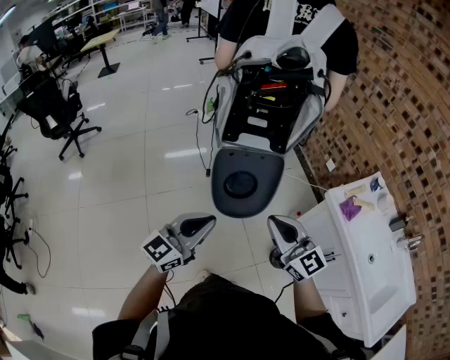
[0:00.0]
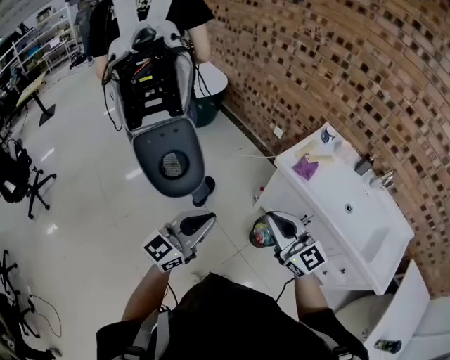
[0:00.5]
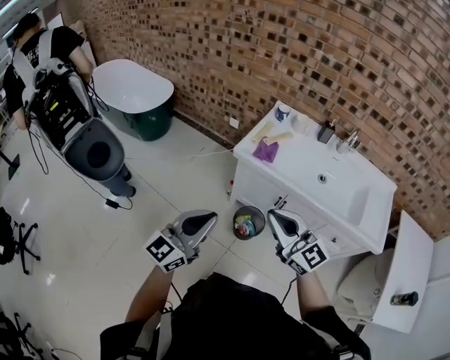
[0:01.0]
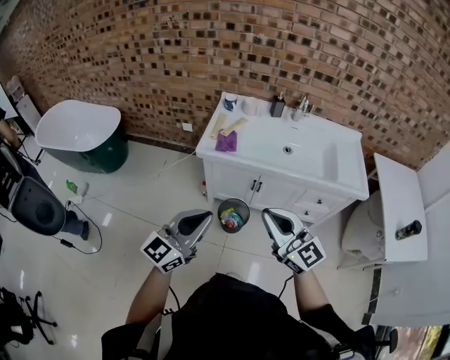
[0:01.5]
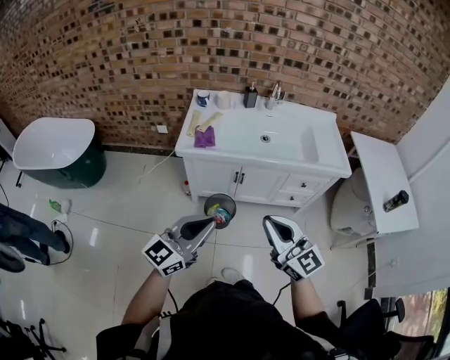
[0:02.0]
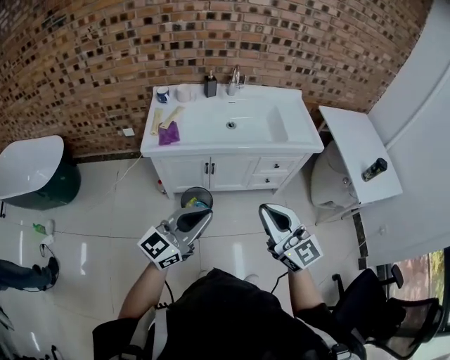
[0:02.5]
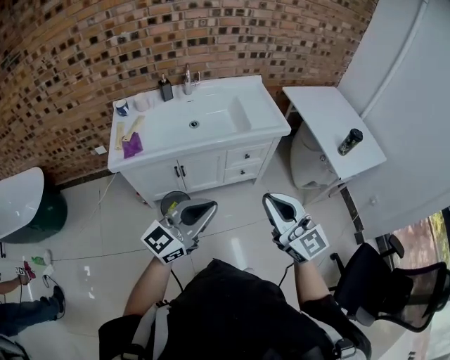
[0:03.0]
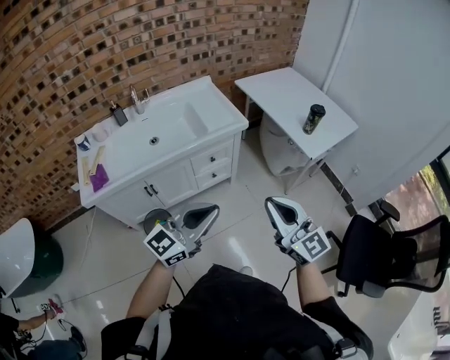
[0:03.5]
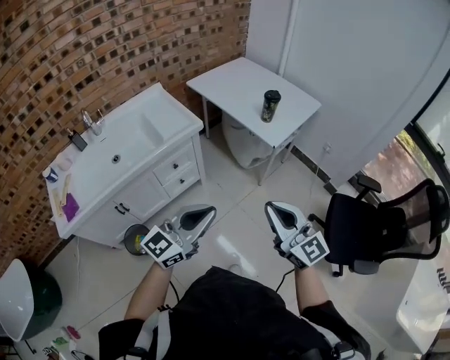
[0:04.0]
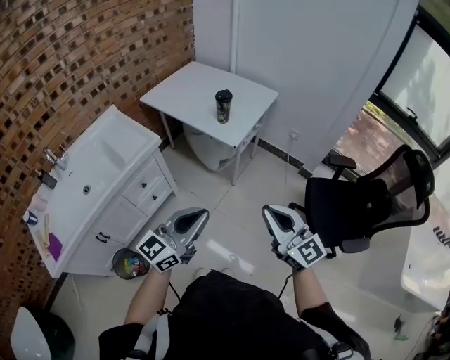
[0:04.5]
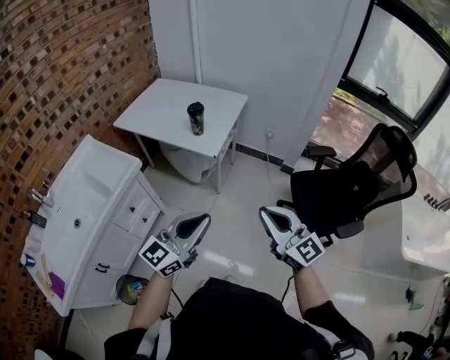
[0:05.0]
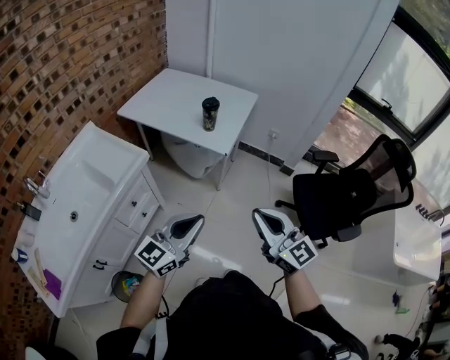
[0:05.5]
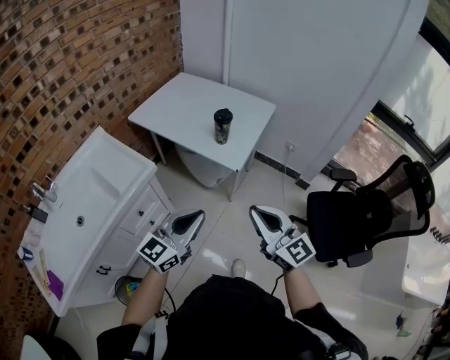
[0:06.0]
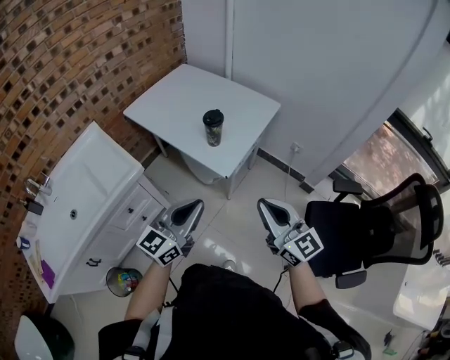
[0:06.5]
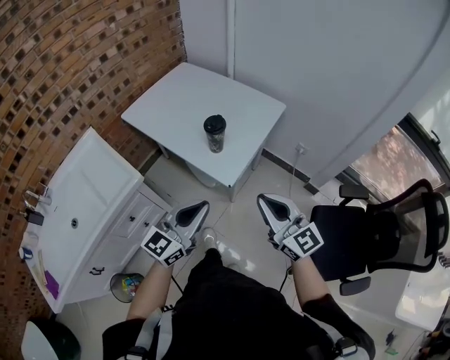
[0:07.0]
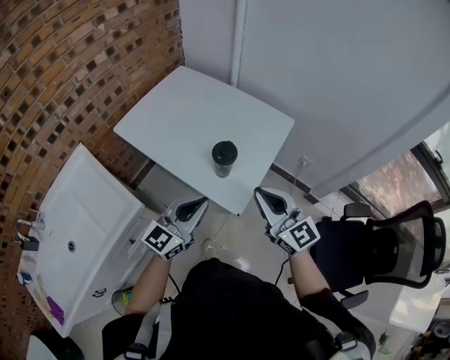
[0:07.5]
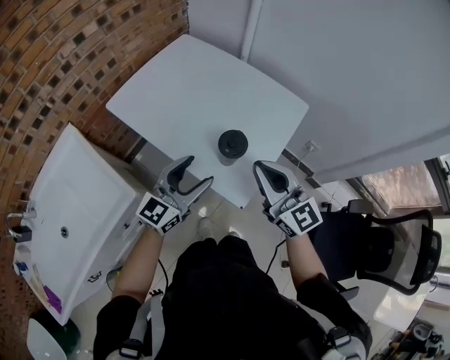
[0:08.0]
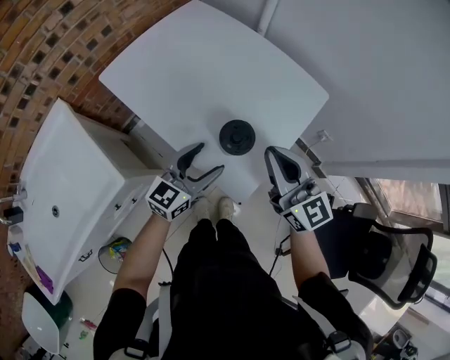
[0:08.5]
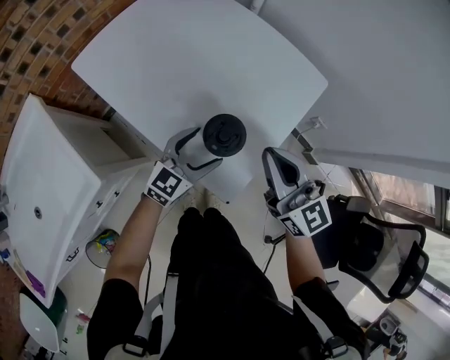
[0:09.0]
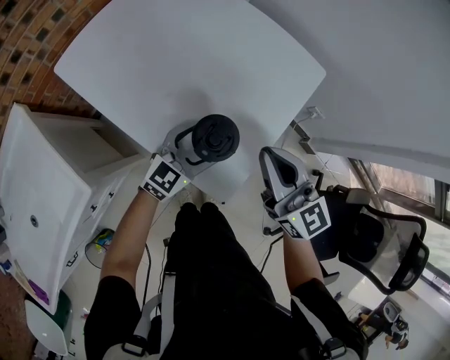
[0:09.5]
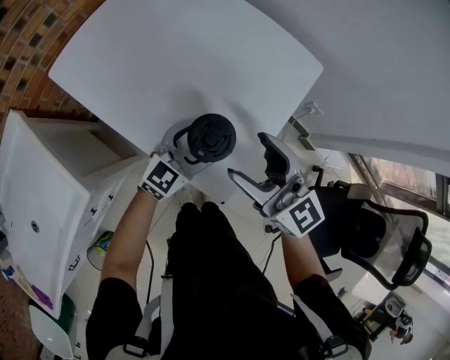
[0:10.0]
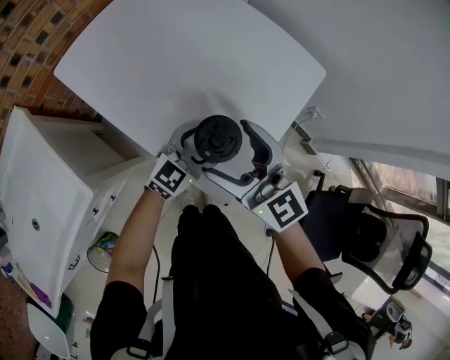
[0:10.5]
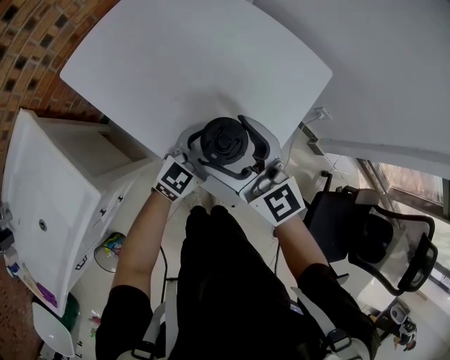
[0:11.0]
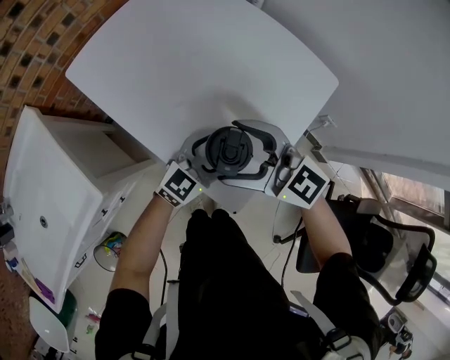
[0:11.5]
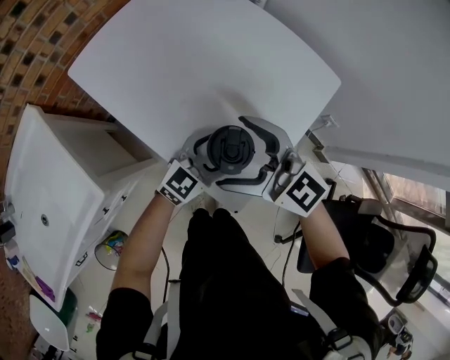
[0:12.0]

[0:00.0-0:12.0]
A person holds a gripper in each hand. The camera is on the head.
0:00.0 to 0:02.0: The right gripper shifts by about 30 cm, and changes its angle by about 60 degrees; the left gripper ends up roughly 30 cm from where it was, and rotates some 60 degrees.
0:02.0 to 0:04.0: The pair of grippers is taken some 40 cm. The left gripper turns by about 50 degrees, while the right gripper swivels approximately 50 degrees.
0:04.0 to 0:06.0: Both grippers travel together forward, approximately 15 cm.
0:06.0 to 0:08.0: The two grippers go about 40 cm forward. The left gripper opens up.
0:08.0 to 0:10.0: The left gripper shifts about 25 cm downward, to the right and forward; the right gripper moves downward and forward, some 10 cm, and opens its fingers.
0:10.0 to 0:12.0: The right gripper is displaced to the left by about 10 cm, and rotates some 30 degrees.

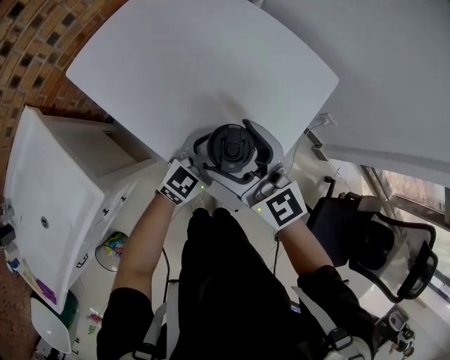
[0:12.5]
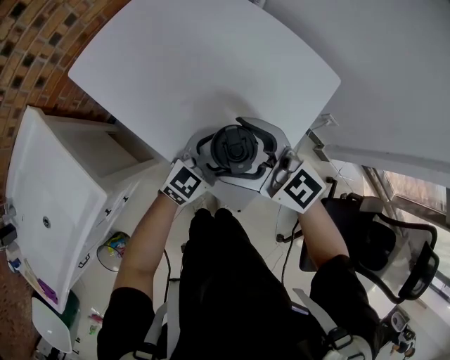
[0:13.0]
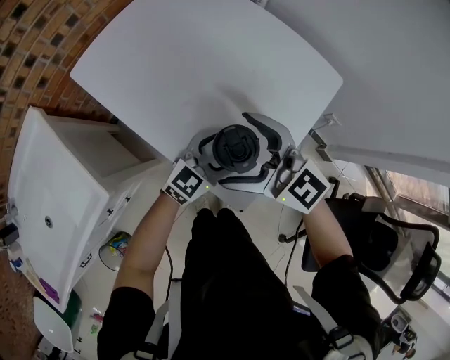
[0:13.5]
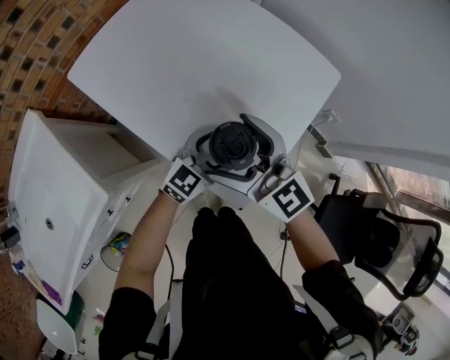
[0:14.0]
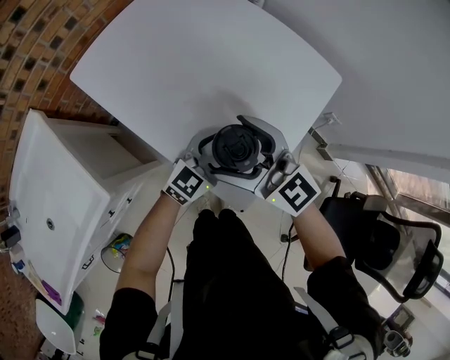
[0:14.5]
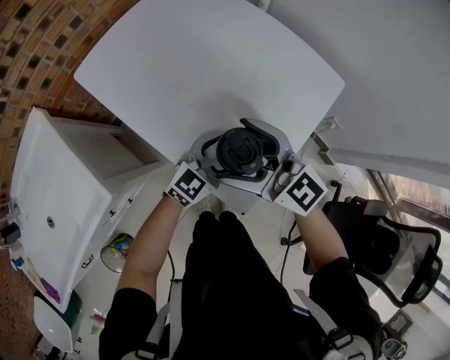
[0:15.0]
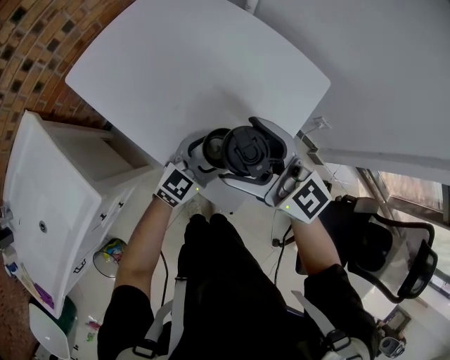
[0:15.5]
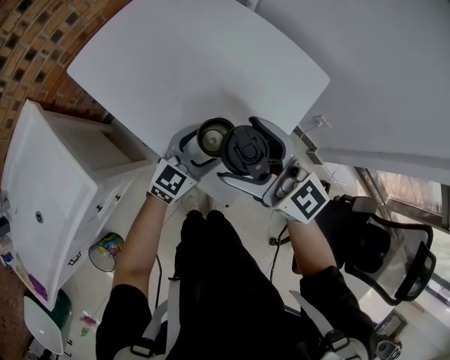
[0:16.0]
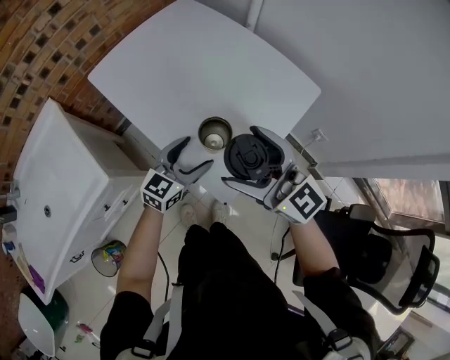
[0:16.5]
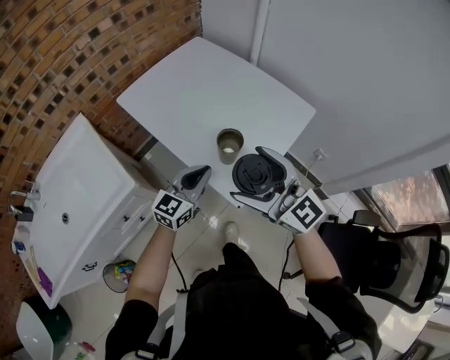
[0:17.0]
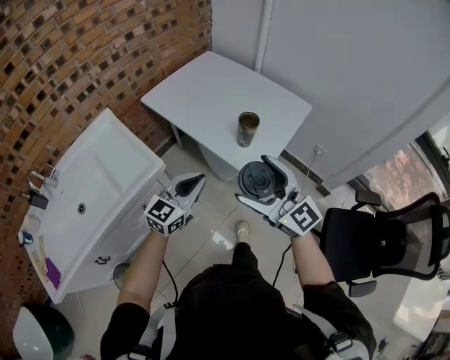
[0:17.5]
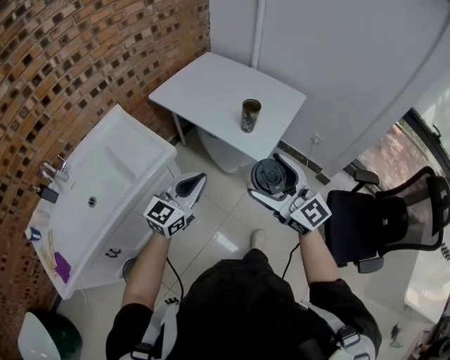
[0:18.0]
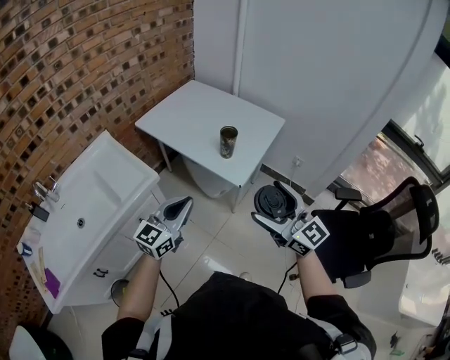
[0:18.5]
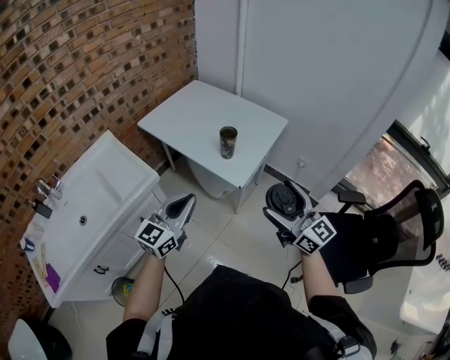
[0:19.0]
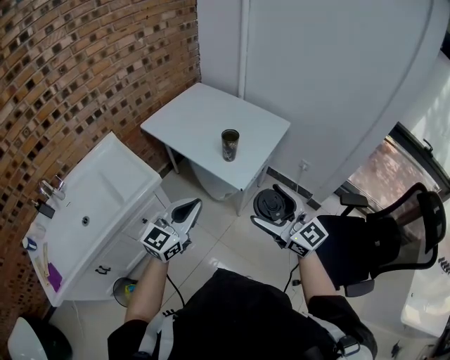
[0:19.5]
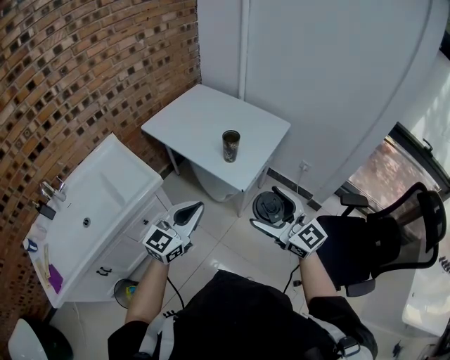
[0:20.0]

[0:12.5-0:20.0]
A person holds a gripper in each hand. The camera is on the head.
0:14.5 to 0:16.5: The left gripper moves to the left, roughly 5 cm, while the right gripper is displaced upward, backward and to the right by some 10 cm.
0:16.5 to 0:18.0: The left gripper is displaced backward, upward and to the left by about 40 cm, and closes, while the right gripper moves backward, roughly 30 cm.
0:18.0 to 0:20.0: The two grippers go some 10 cm to the right.

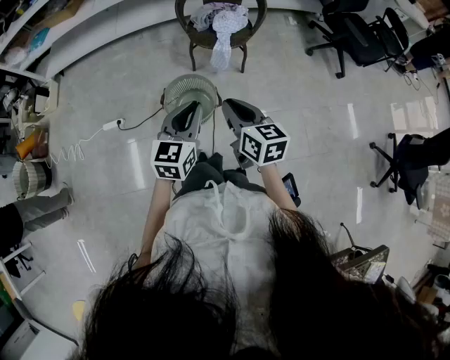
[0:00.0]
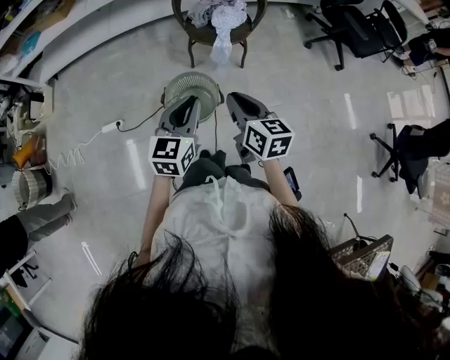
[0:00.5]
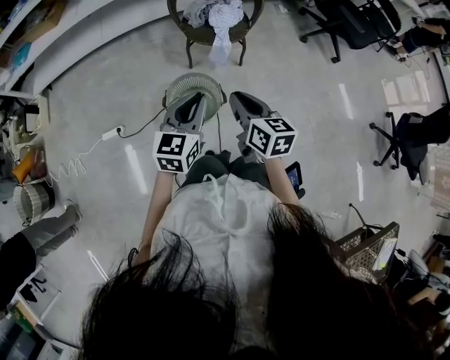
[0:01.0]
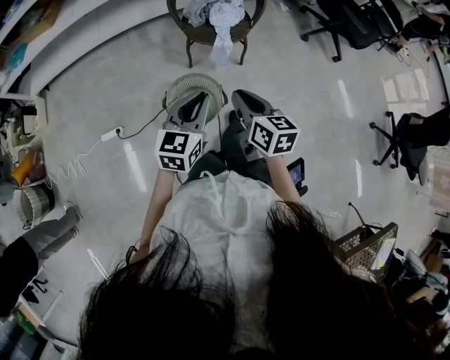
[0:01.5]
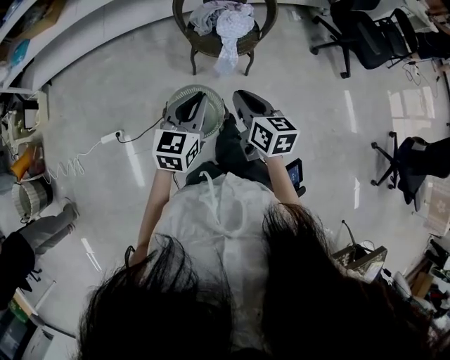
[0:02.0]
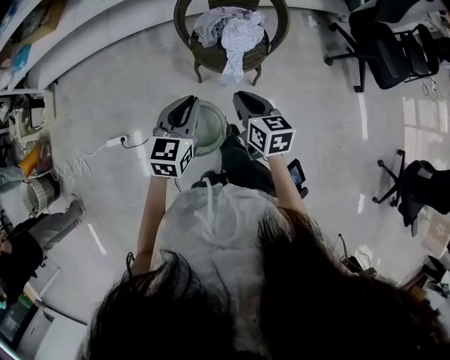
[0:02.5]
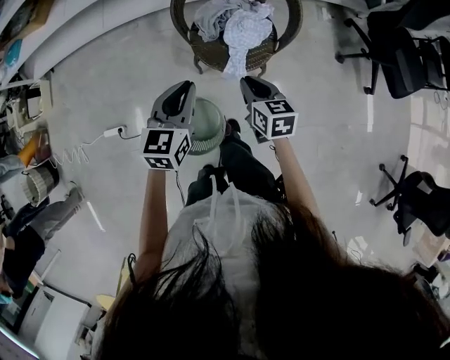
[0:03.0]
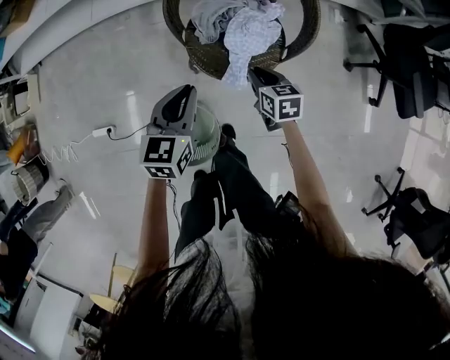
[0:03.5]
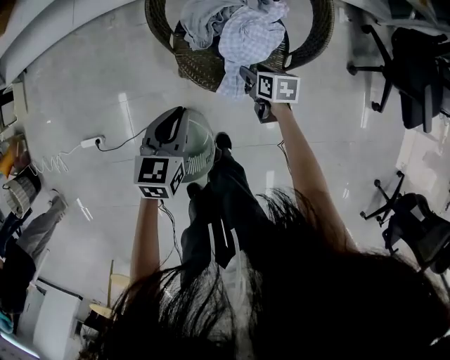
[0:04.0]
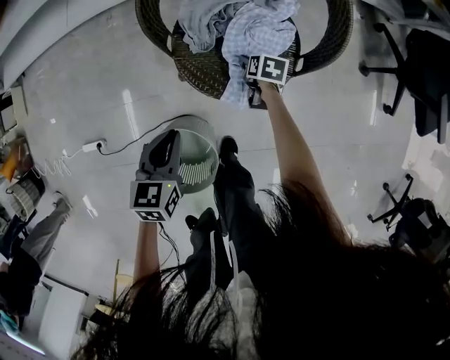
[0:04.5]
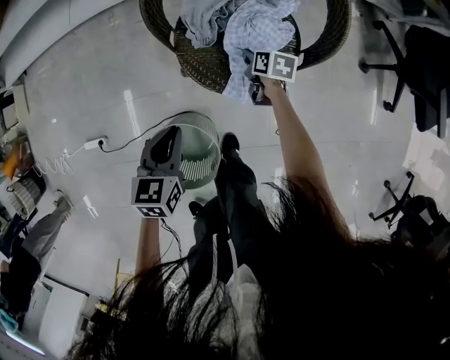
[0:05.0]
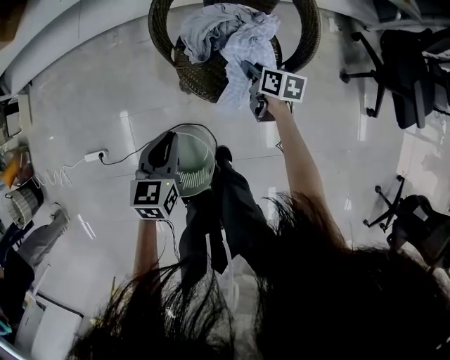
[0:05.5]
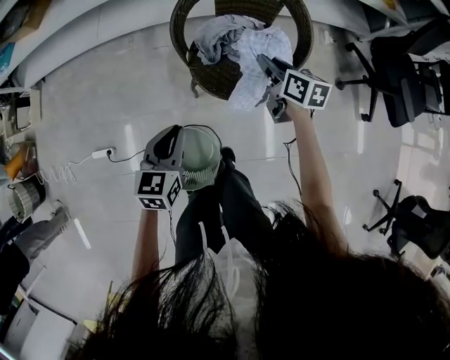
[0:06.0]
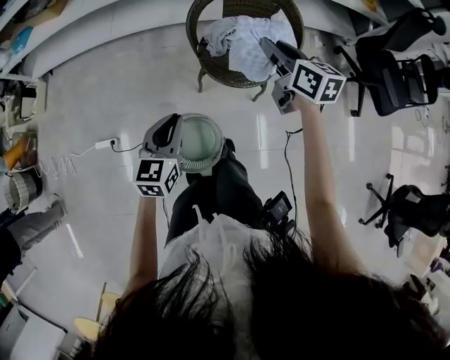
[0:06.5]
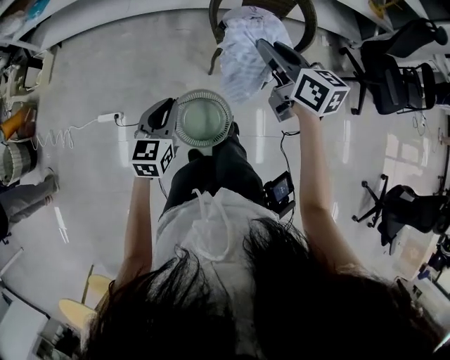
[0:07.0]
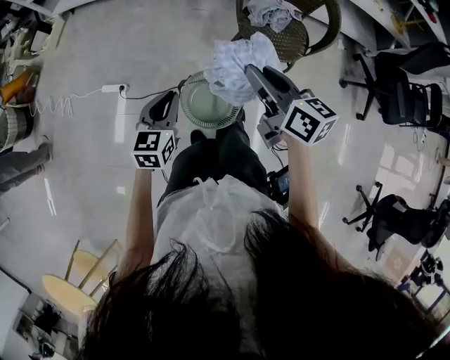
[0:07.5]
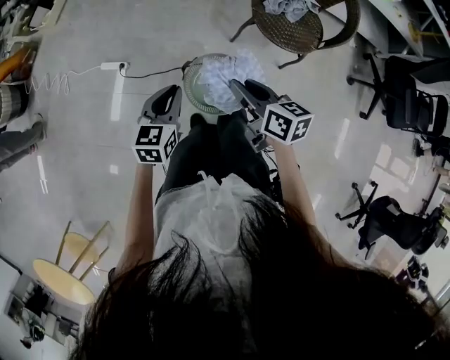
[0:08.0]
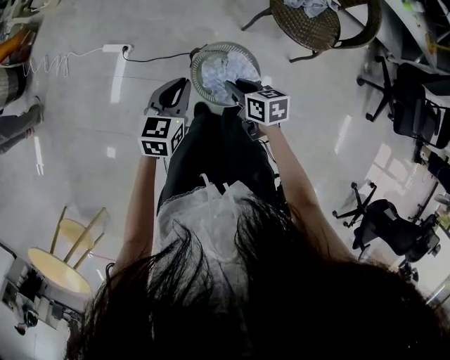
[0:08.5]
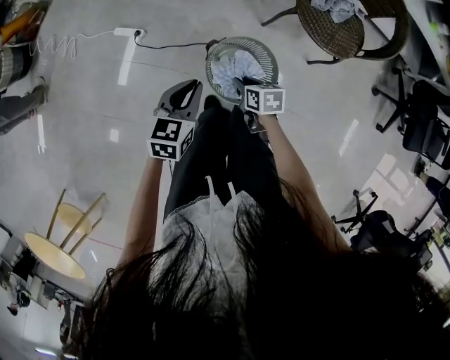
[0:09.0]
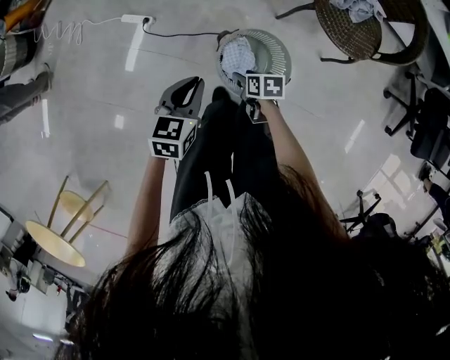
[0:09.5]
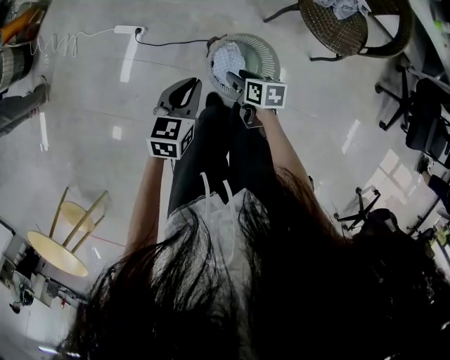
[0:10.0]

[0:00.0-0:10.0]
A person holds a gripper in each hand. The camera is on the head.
0:00.0 to 0:02.0: Both grippers move forward, approximately 20 cm.
0:02.0 to 0:04.0: The right gripper heads downward and forward, covering approximately 60 cm, turns by some 30 degrees, and opens up. Meanwhile the left gripper travels forward and downward by some 40 cm, and swivels some 20 degrees.
0:04.0 to 0:06.0: The left gripper shifts some 15 cm upward, backward and to the left. Meanwhile the right gripper moves upward, about 25 cm, rotates some 20 degrees, and closes up.
0:06.0 to 0:08.0: The grippers both shift to the left and backward by about 40 cm. The right gripper changes its angle by roughly 20 degrees.
0:08.0 to 0:10.0: The right gripper travels downward by some 25 cm, swivels roughly 30 degrees, and opens. The left gripper travels downward by some 10 cm.
